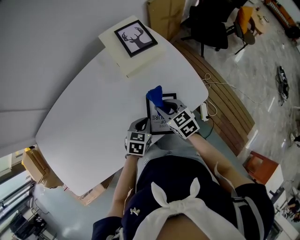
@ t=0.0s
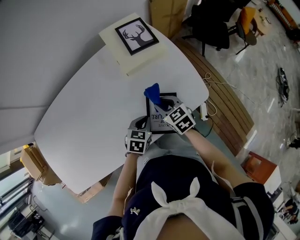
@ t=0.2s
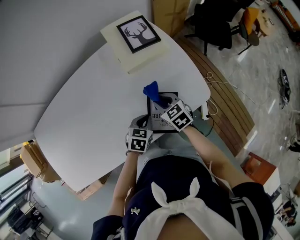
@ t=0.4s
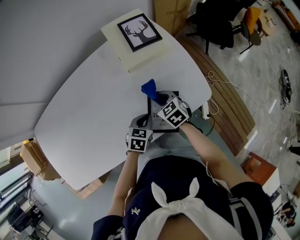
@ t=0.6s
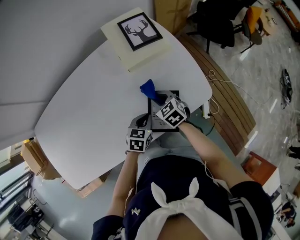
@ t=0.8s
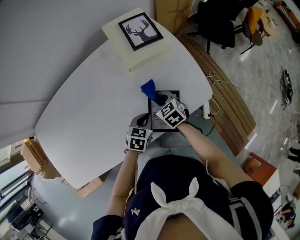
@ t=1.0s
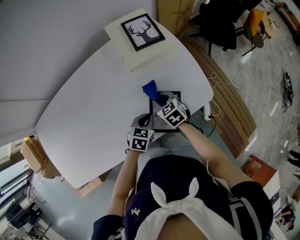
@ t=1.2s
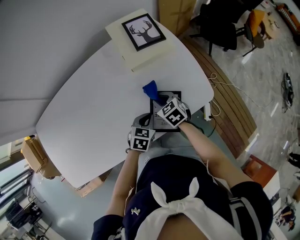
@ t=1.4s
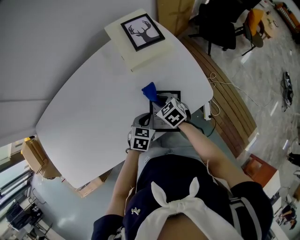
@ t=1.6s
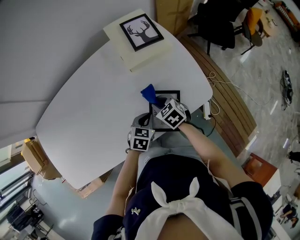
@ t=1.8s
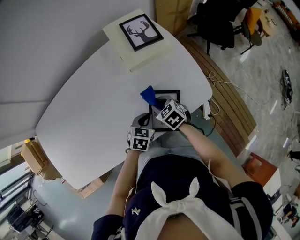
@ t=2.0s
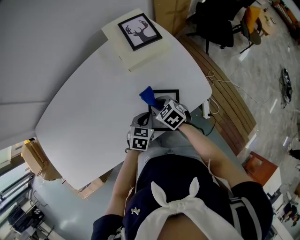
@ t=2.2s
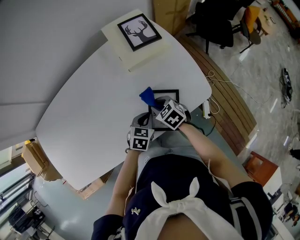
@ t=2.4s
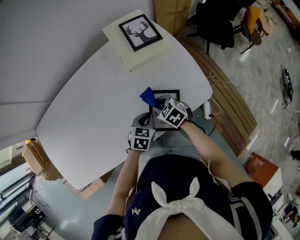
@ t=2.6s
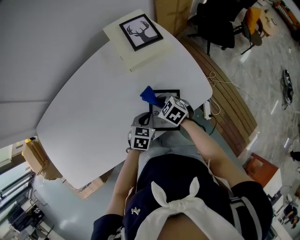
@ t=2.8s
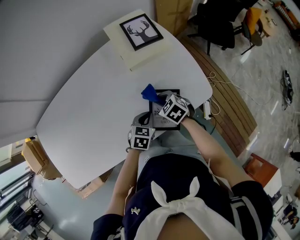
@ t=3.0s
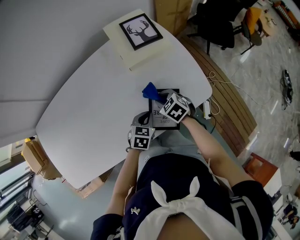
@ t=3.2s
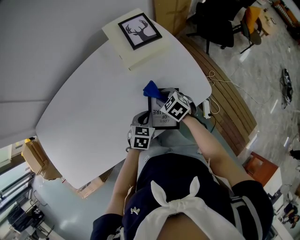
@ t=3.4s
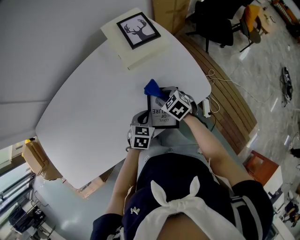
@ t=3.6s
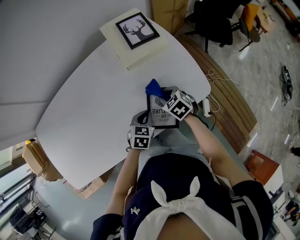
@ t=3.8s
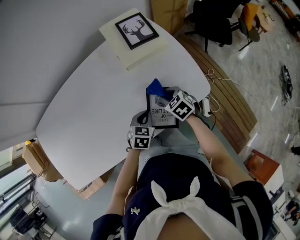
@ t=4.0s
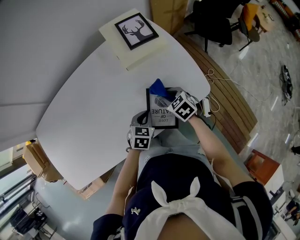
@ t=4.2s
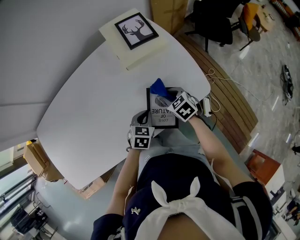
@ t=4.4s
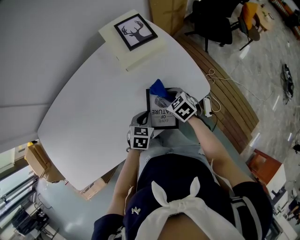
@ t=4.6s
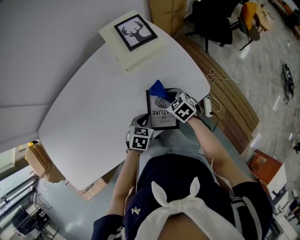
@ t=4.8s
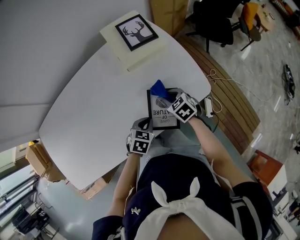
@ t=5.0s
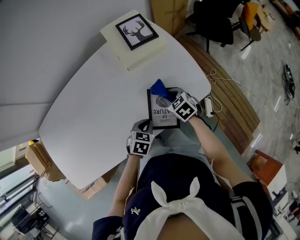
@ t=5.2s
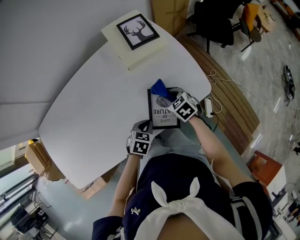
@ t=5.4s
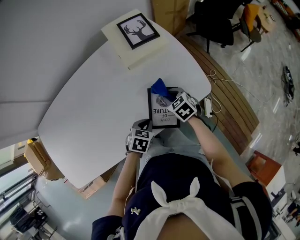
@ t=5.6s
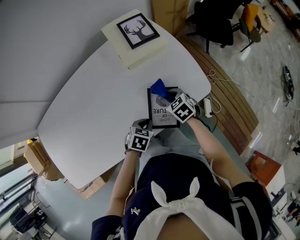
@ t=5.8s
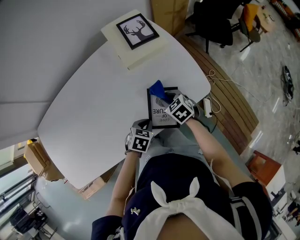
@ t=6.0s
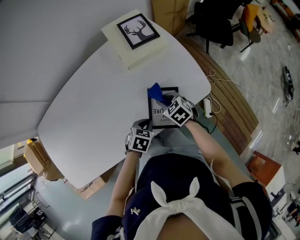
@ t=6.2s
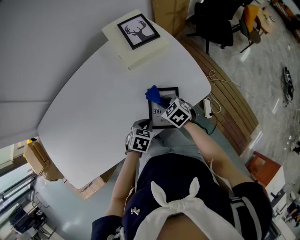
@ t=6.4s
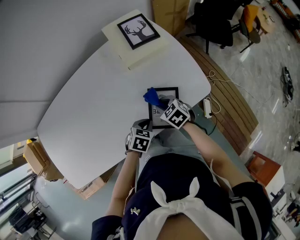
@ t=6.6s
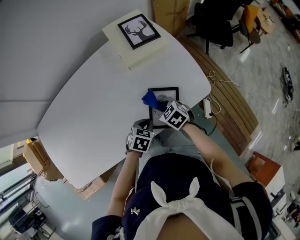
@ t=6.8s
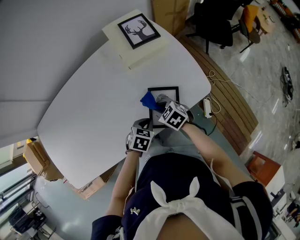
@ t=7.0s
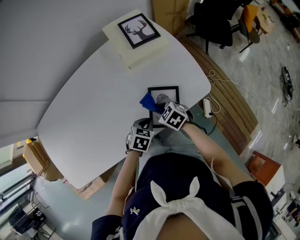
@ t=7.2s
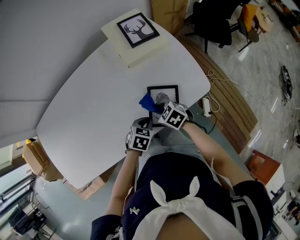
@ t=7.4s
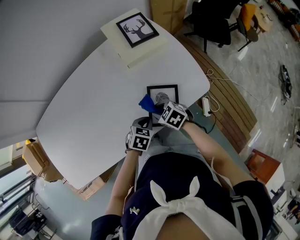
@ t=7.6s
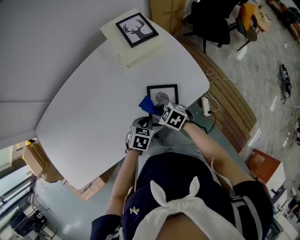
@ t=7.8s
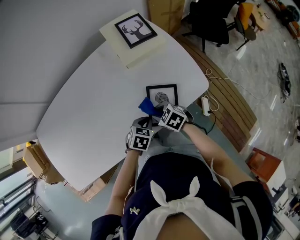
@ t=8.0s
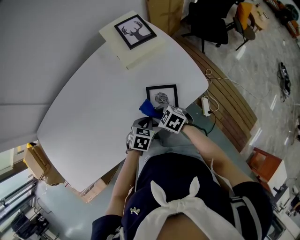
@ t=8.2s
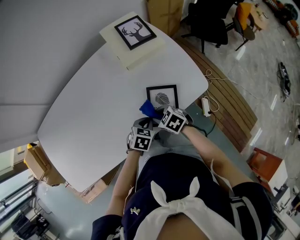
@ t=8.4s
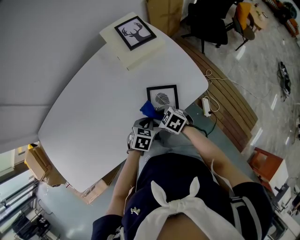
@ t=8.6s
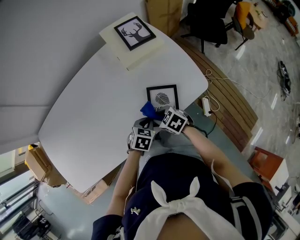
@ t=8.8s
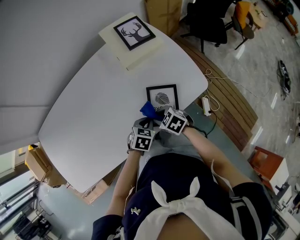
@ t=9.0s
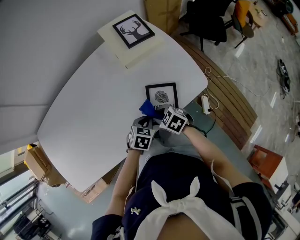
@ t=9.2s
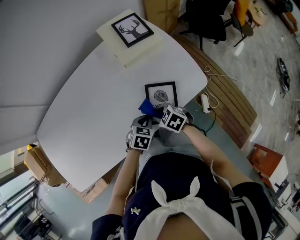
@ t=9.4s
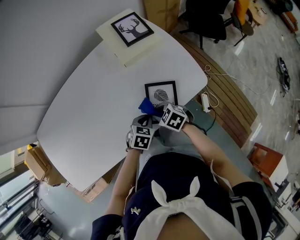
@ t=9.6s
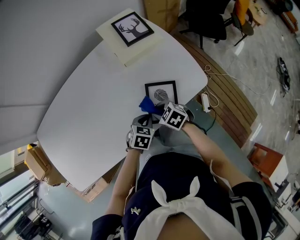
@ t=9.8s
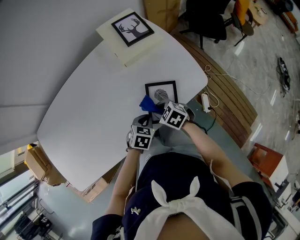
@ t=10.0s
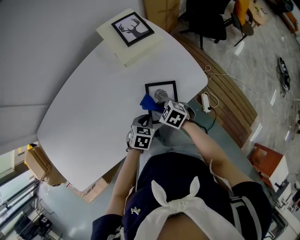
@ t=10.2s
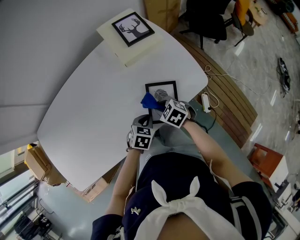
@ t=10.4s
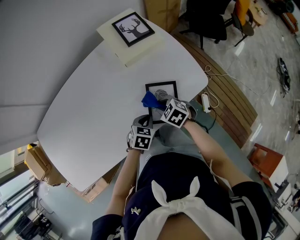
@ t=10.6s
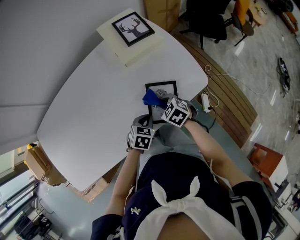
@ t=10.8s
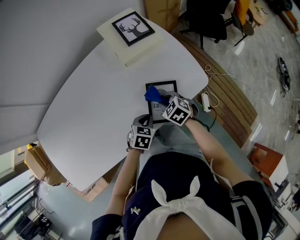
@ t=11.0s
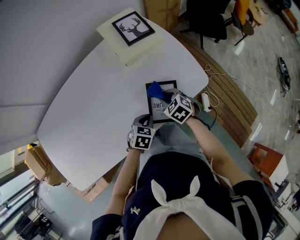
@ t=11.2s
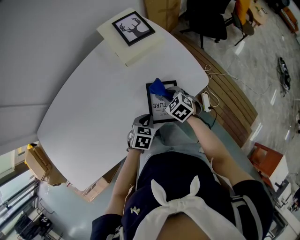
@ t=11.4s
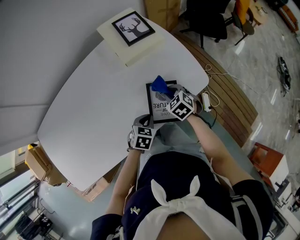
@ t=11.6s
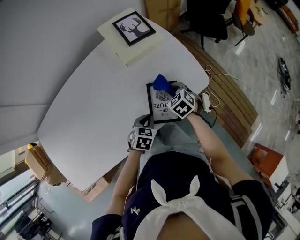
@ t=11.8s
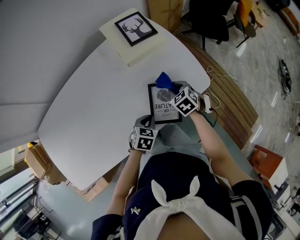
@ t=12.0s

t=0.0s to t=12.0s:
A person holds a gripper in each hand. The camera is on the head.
t=0.0s to t=1.6s: The right gripper moves downward, some 5 cm.
t=1.6s to t=3.0s: The grippers move only a little.
t=3.0s to t=4.4s: The right gripper shifts about 5 cm to the right.
t=4.4s to t=6.0s: The grippers stay close to where they were, moving slightly.
t=6.0s to t=7.6s: The right gripper shifts roughly 10 cm to the left and backward.
t=7.6s to t=10.4s: There are only small adjustments of the grippers.
t=10.4s to t=12.0s: The right gripper travels to the right and forward by some 10 cm, and changes its angle by about 20 degrees.

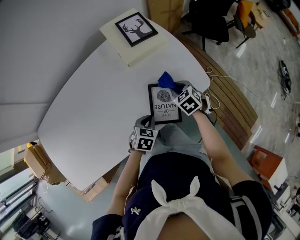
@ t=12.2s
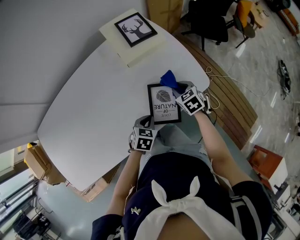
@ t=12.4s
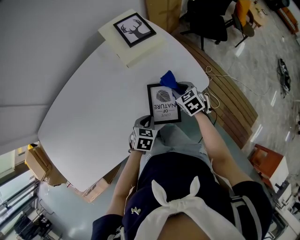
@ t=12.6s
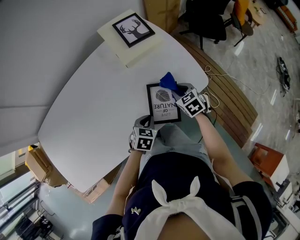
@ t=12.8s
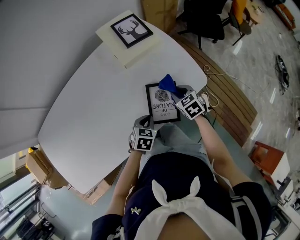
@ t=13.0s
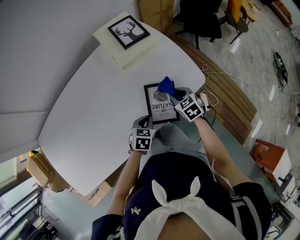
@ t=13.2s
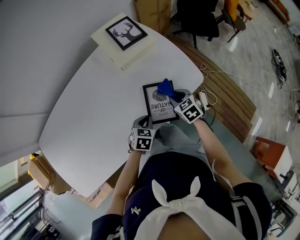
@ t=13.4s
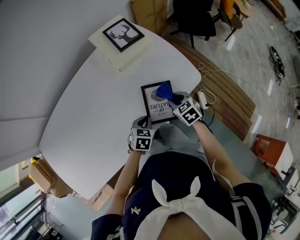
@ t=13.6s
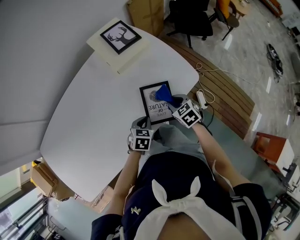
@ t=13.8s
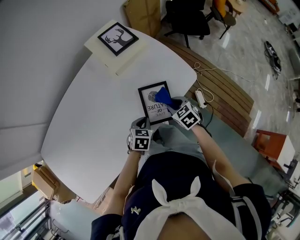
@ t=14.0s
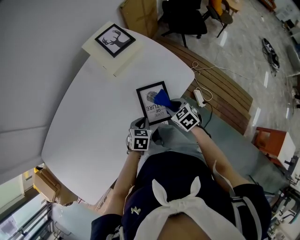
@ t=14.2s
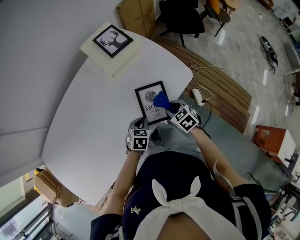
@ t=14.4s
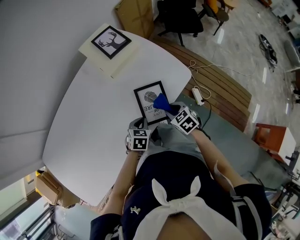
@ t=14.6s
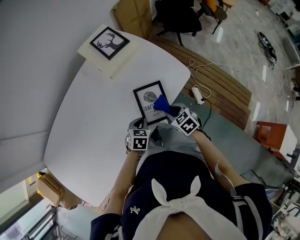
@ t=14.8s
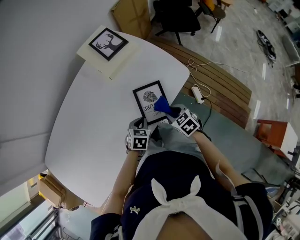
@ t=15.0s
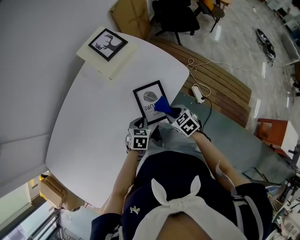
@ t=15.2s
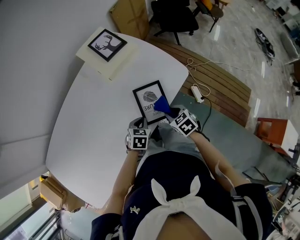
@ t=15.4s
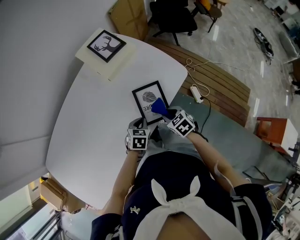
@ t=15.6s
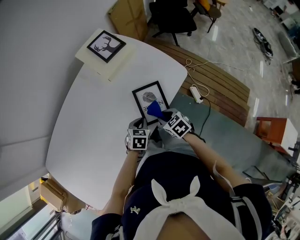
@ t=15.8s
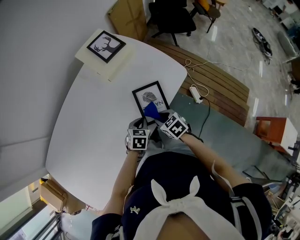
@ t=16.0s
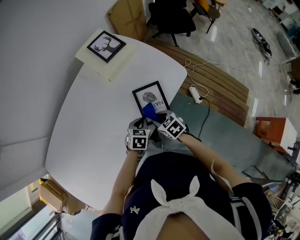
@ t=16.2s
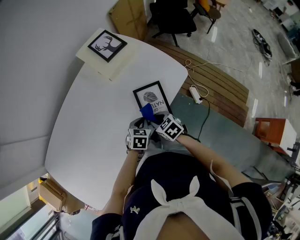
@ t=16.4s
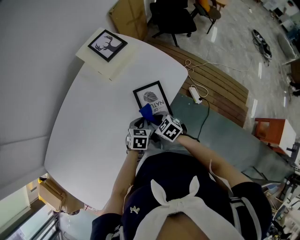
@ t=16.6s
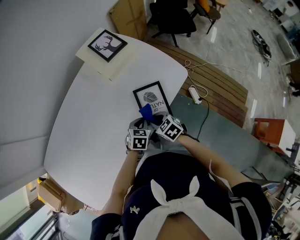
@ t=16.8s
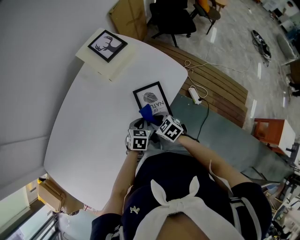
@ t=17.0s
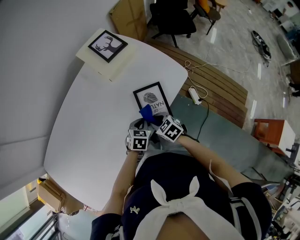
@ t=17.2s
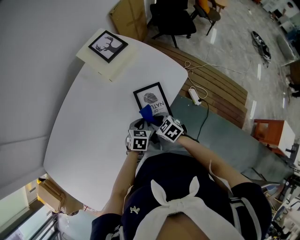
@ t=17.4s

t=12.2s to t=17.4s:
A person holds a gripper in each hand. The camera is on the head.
t=12.2s to t=14.0s: The right gripper heads backward, covering roughly 10 cm.
t=14.0s to t=15.6s: The right gripper goes about 5 cm backward.
t=15.6s to t=17.4s: The right gripper is displaced to the left by approximately 10 cm.

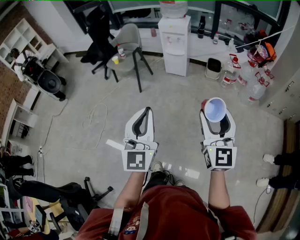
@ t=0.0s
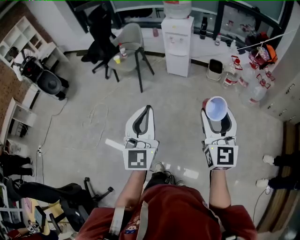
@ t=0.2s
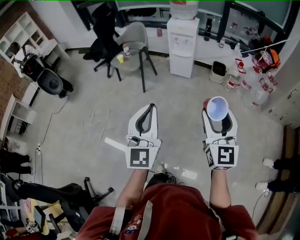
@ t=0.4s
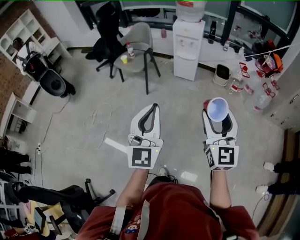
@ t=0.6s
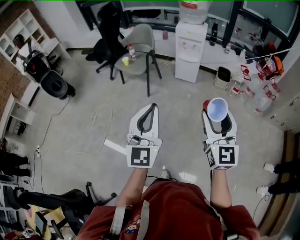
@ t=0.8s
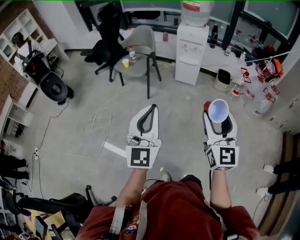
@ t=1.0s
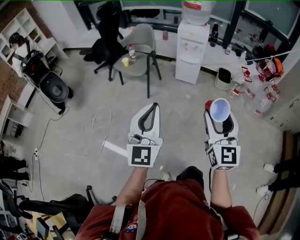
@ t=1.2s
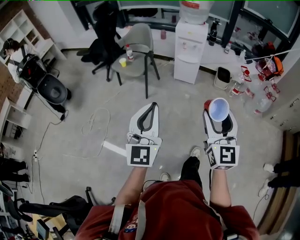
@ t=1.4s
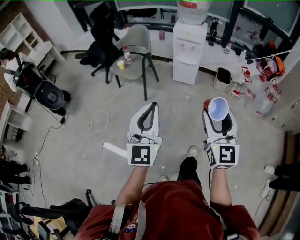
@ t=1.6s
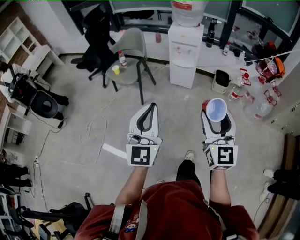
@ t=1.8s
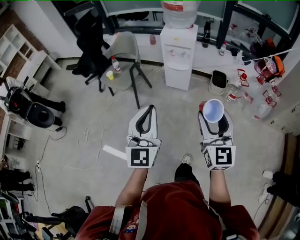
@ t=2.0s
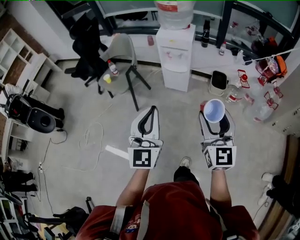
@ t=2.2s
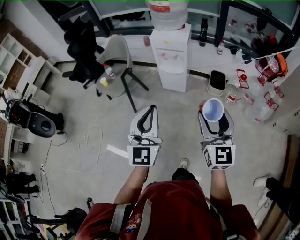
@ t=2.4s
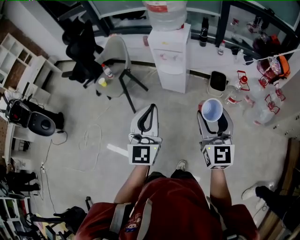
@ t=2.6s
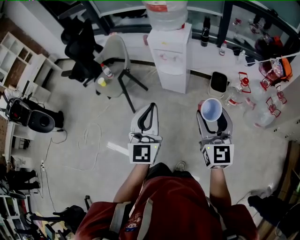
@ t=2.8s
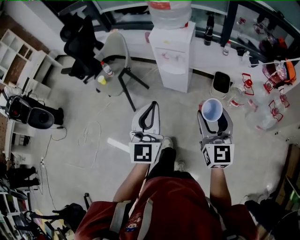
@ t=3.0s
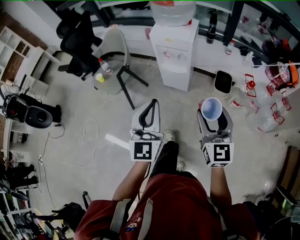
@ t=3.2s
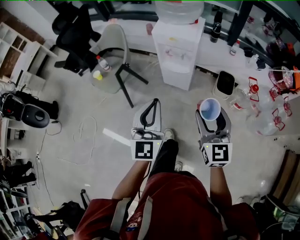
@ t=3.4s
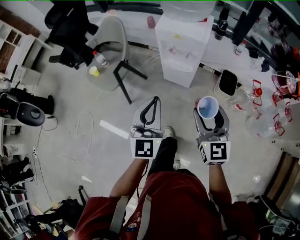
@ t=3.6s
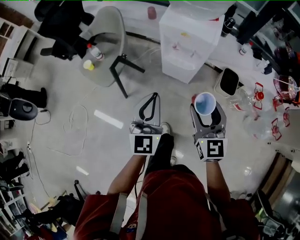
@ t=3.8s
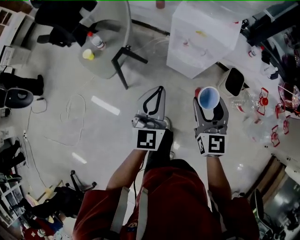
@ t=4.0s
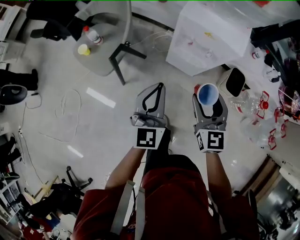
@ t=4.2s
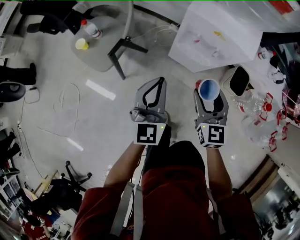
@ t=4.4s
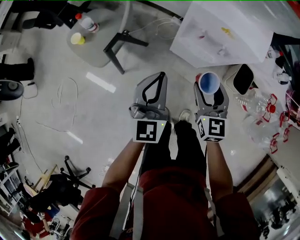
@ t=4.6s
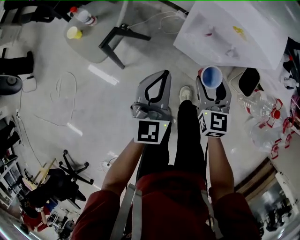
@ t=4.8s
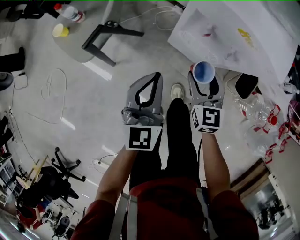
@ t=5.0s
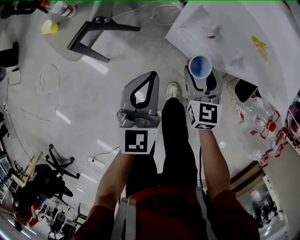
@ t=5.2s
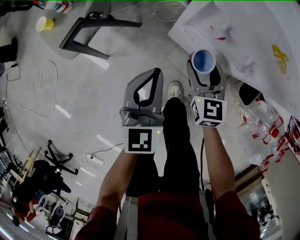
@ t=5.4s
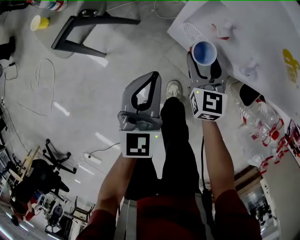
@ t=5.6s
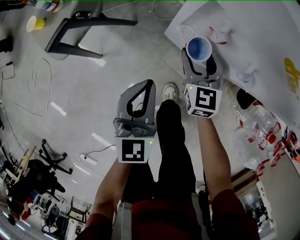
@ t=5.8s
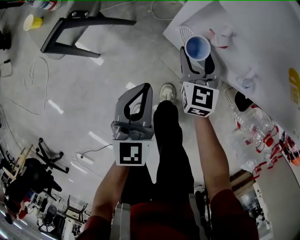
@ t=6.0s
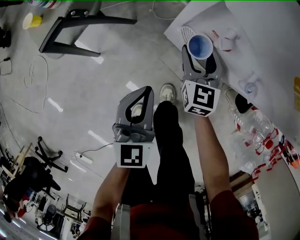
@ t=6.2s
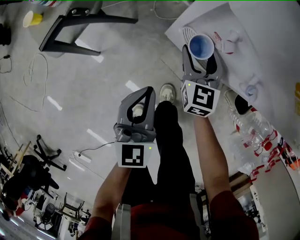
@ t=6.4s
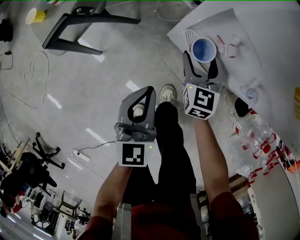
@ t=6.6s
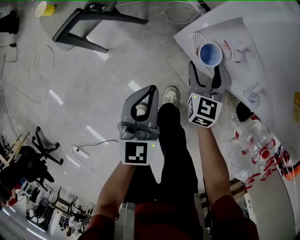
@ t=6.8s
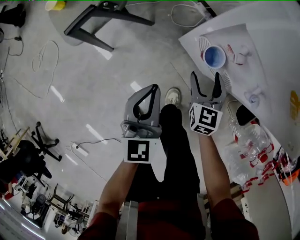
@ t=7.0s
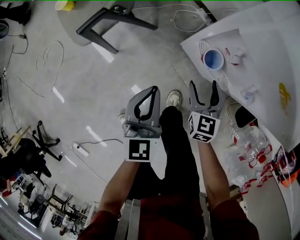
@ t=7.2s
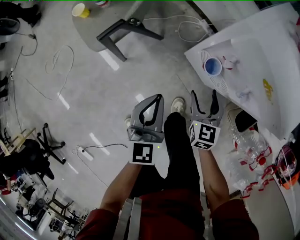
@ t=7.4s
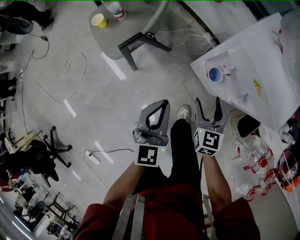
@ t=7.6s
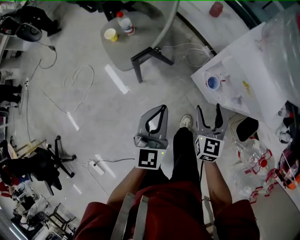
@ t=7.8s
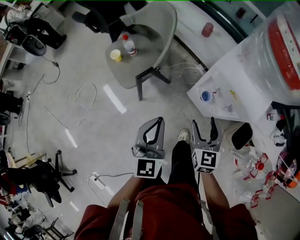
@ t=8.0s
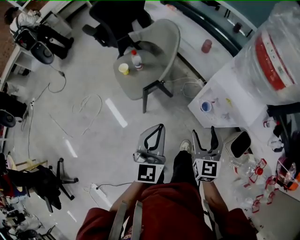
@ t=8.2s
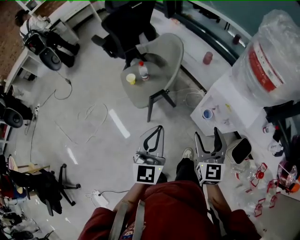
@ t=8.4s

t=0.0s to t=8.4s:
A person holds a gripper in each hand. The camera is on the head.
t=0.0s to t=1.4s: Both grippers travel together to the left and forward, approximately 20 cm.
t=1.4s to t=2.8s: The two grippers go some 40 cm forward and to the right.
t=2.8s to t=4.2s: The left gripper travels forward and downward by approximately 40 cm, while the right gripper is displaced forward, downward and to the left by roughly 40 cm, and swivels some 20 degrees.
t=4.2s to t=5.6s: The right gripper goes approximately 40 cm downward and forward, while the left gripper shifts approximately 25 cm downward.
t=5.6s to t=7.0s: The right gripper ends up roughly 5 cm from where it was.
t=7.0s to t=8.4s: The grippers both shift upward by about 40 cm. The right gripper turns by about 20 degrees.
